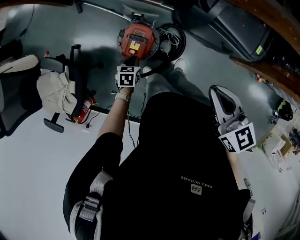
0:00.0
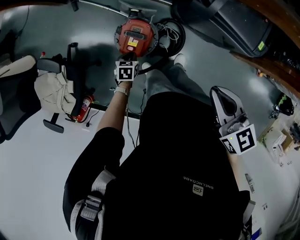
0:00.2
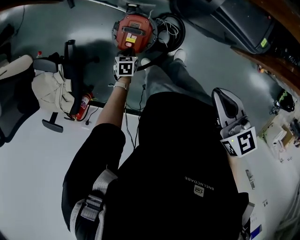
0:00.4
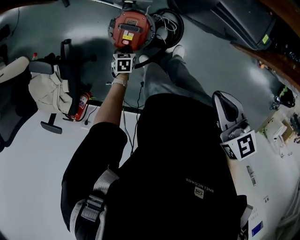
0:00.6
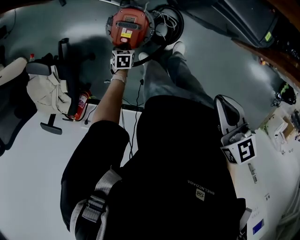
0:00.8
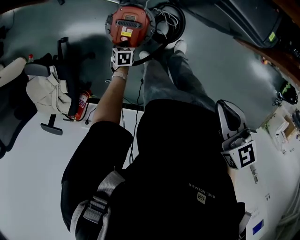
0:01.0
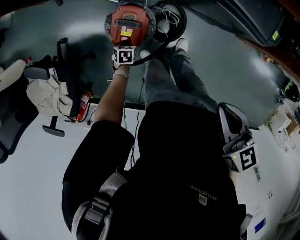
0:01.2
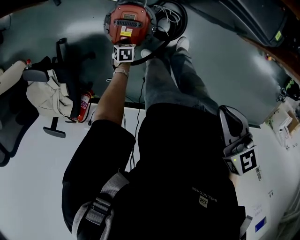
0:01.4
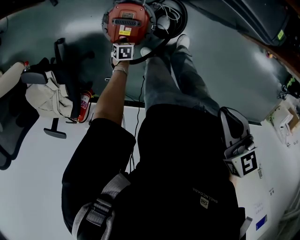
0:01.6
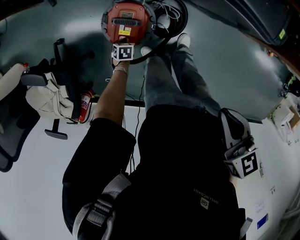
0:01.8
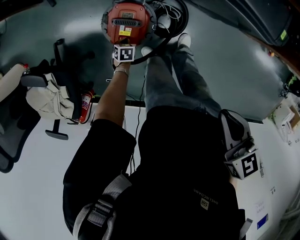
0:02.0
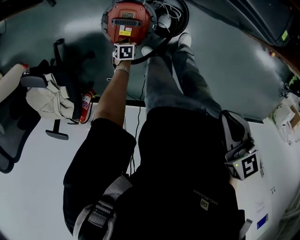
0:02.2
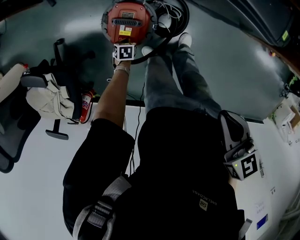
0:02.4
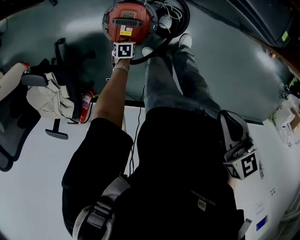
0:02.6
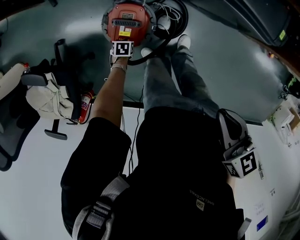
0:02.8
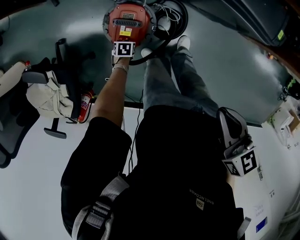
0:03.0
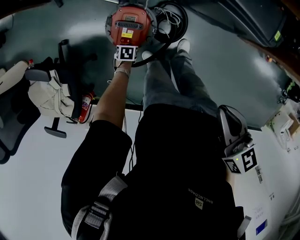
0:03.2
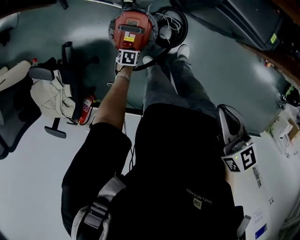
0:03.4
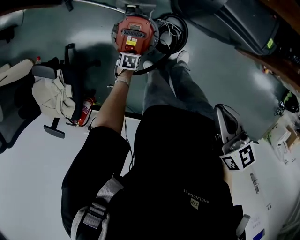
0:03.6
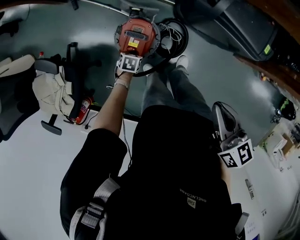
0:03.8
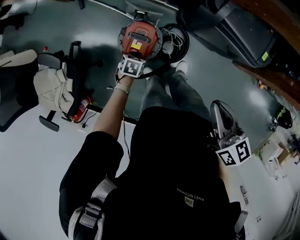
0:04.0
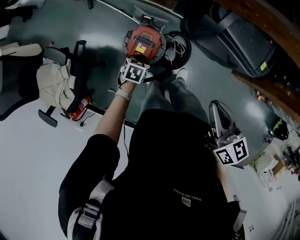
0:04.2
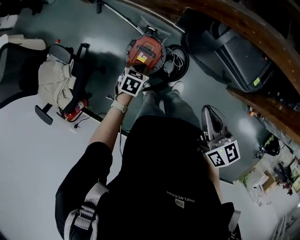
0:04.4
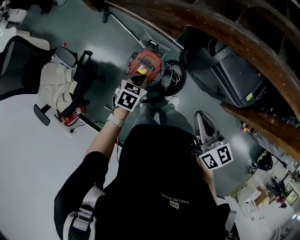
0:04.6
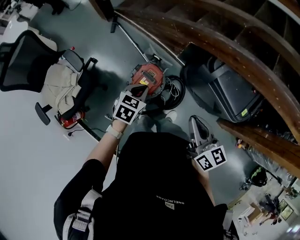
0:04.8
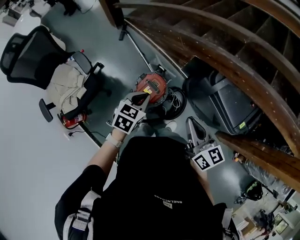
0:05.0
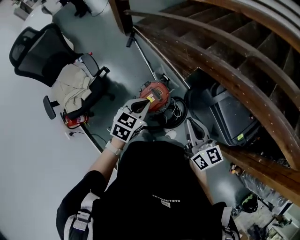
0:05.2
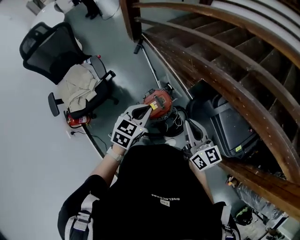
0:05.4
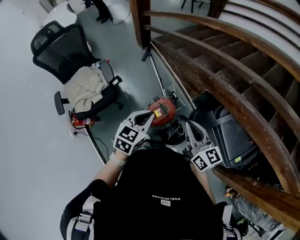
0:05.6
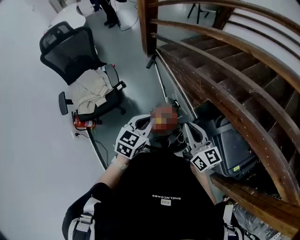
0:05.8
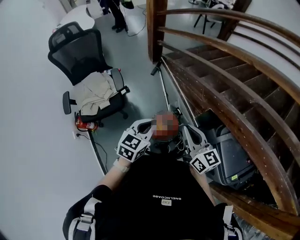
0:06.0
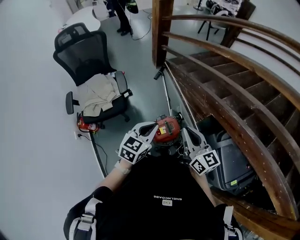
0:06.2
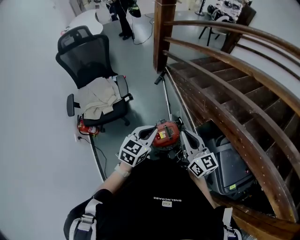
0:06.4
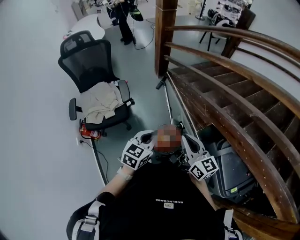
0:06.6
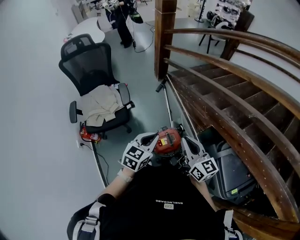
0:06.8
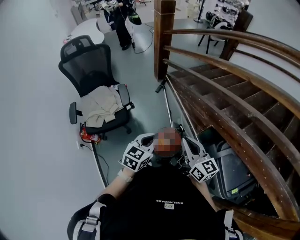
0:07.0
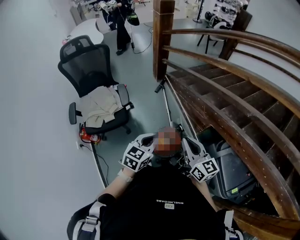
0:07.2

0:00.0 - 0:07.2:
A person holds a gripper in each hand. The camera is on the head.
0:00.0 - 0:01.4: The left gripper shifts approximately 25 cm downward, while the right gripper shifts approximately 10 cm downward.
0:01.4 - 0:02.8: The grippers move only a little.
0:02.8 - 0:04.4: The right gripper is displaced upward by about 10 cm, and rotates about 20 degrees. The left gripper travels upward by about 35 cm, and swivels some 20 degrees.
0:04.4 - 0:05.8: The right gripper changes place by roughly 20 cm, and turns by approximately 40 degrees; the left gripper travels upward by about 35 cm, and tilts its fingers roughly 30 degrees upward.
0:05.8 - 0:07.2: The grippers make only small movements.

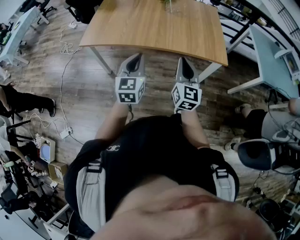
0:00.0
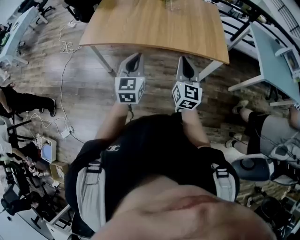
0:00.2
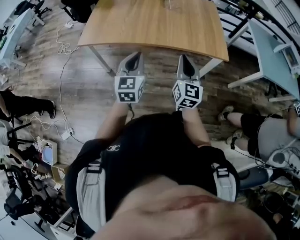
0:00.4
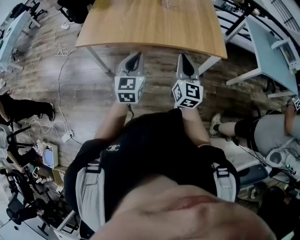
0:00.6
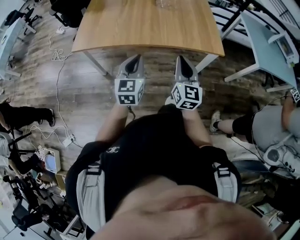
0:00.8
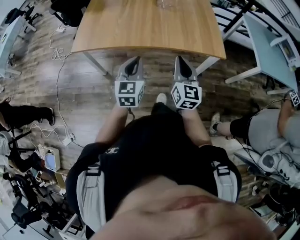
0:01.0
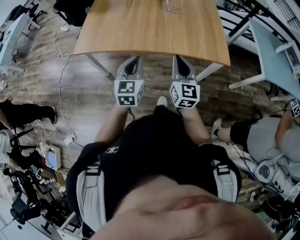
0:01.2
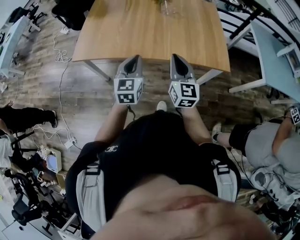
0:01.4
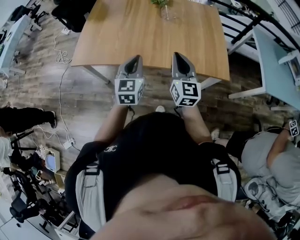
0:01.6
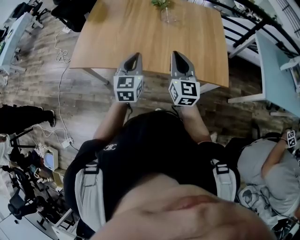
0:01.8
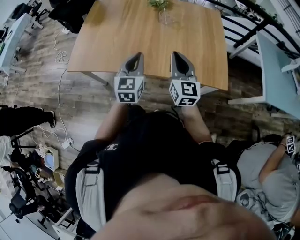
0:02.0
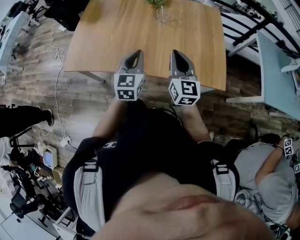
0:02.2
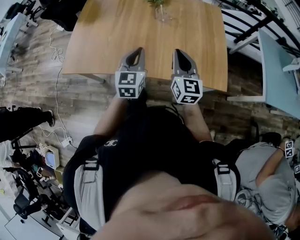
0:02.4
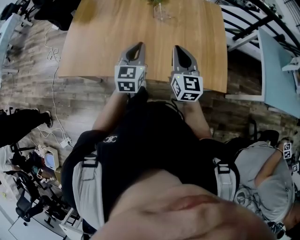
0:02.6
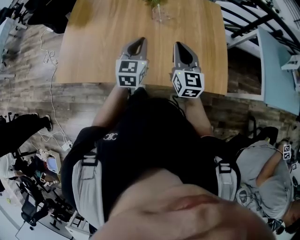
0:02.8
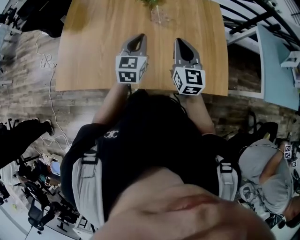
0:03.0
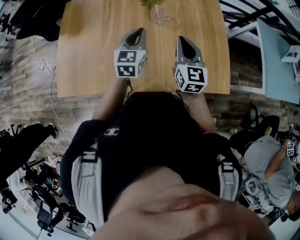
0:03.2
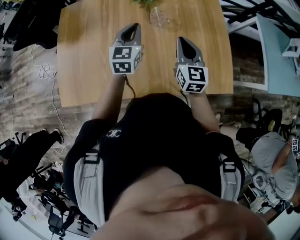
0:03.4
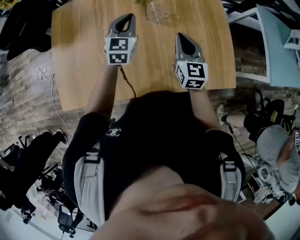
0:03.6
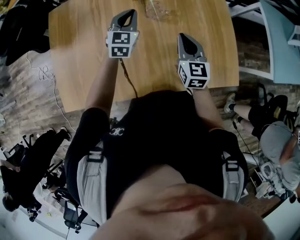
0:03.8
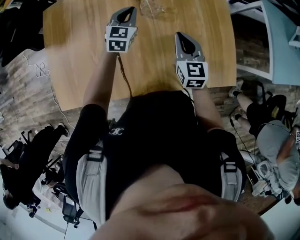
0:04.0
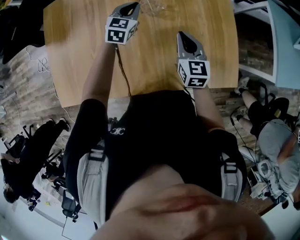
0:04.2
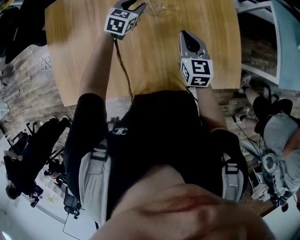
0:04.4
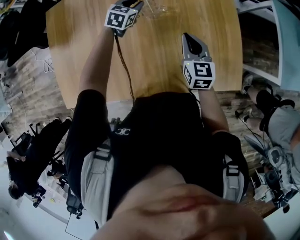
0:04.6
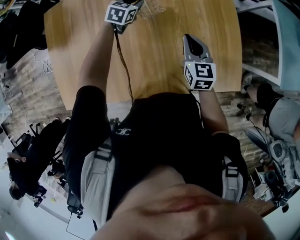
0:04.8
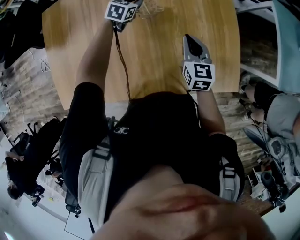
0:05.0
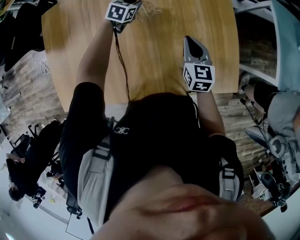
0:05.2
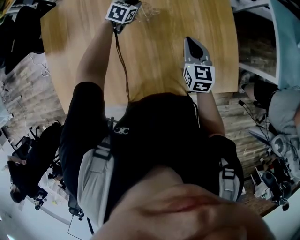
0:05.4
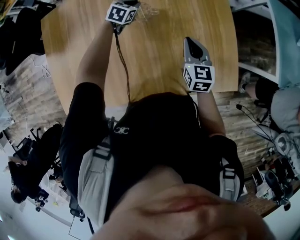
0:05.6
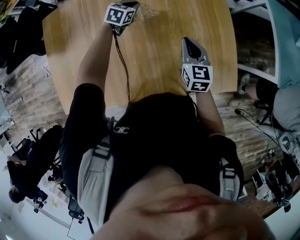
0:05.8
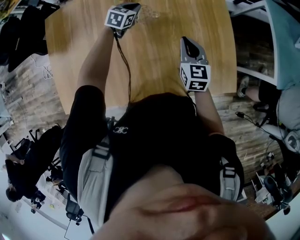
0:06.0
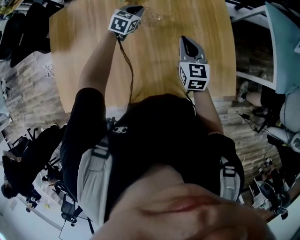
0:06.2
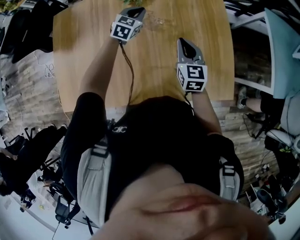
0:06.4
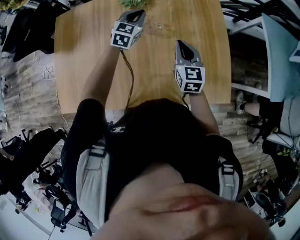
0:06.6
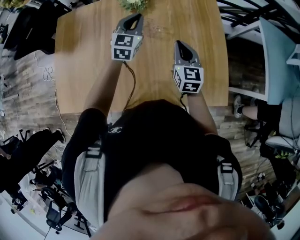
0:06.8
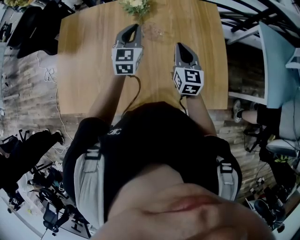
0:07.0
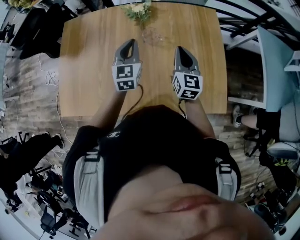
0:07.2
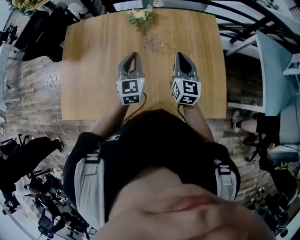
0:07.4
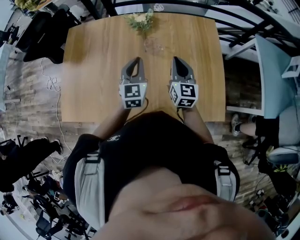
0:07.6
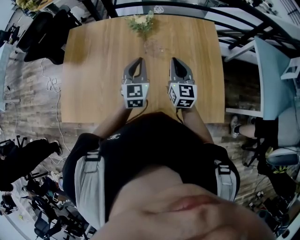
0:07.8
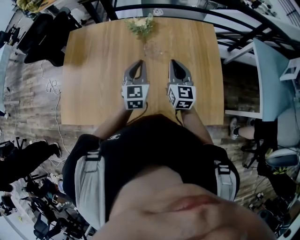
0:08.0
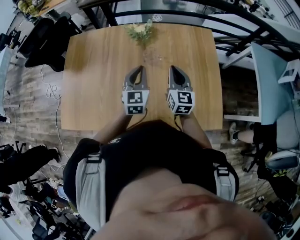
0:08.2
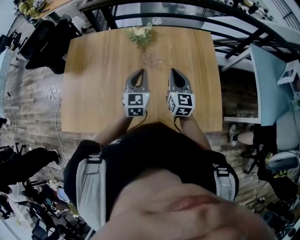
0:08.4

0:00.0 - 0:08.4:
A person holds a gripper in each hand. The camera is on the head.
0:00.0 - 0:01.4: The two grippers go approximately 15 cm forward.
0:01.4 - 0:02.8: The two grippers go some 30 cm forward.
0:02.8 - 0:04.2: The left gripper travels forward and downward by roughly 30 cm, and swivels roughly 20 degrees, while the right gripper moves forward and downward, roughly 20 cm.
0:04.2 - 0:05.6: The left gripper is displaced downward and forward by some 10 cm, rotates about 20 degrees, and opens, then closes once more; the right gripper heads to the right, covering approximately 5 cm.
0:05.6 - 0:07.0: The left gripper is displaced upward and backward by roughly 25 cm, and angles its fingers upward, by about 30 degrees. Meanwhile the right gripper moves upward, approximately 10 cm.
0:07.0 - 0:08.4: The left gripper travels backward by roughly 10 cm.

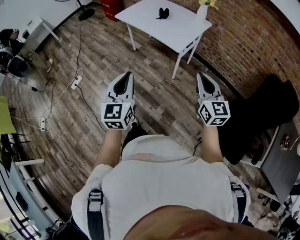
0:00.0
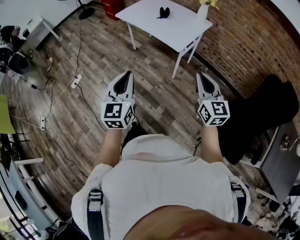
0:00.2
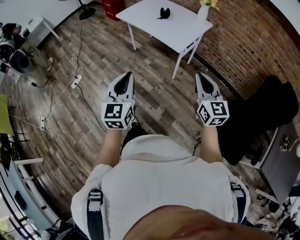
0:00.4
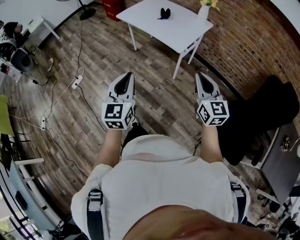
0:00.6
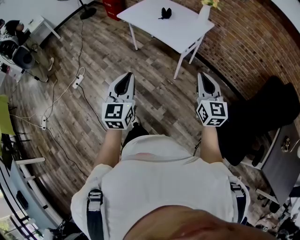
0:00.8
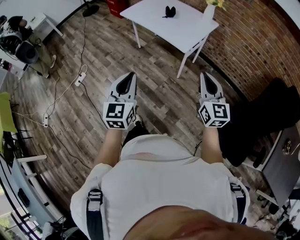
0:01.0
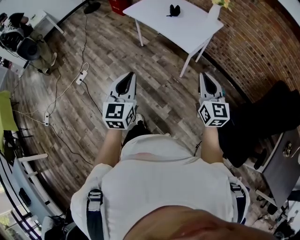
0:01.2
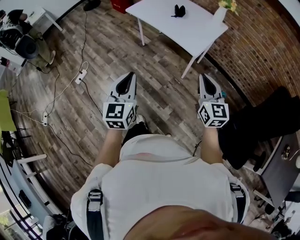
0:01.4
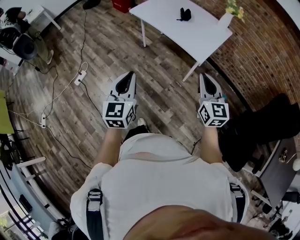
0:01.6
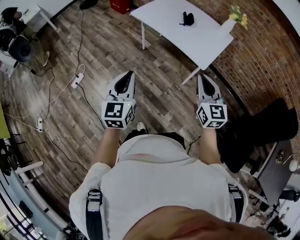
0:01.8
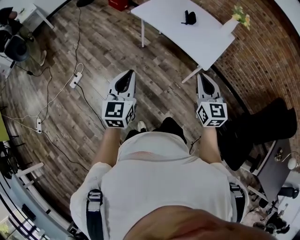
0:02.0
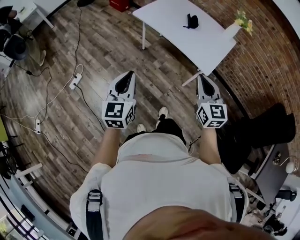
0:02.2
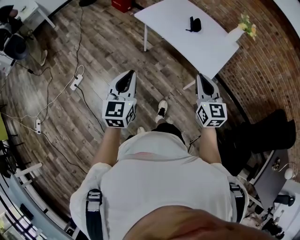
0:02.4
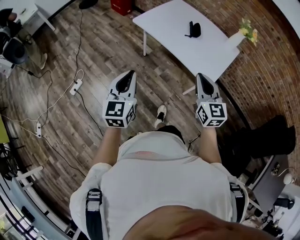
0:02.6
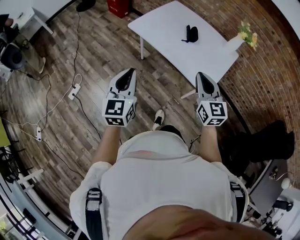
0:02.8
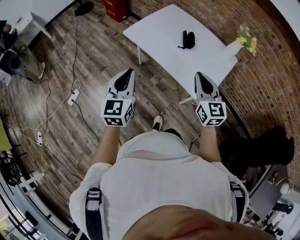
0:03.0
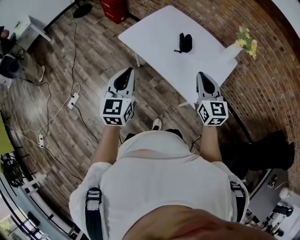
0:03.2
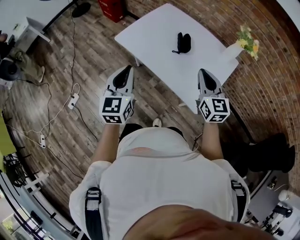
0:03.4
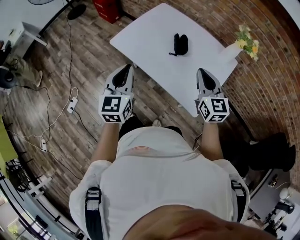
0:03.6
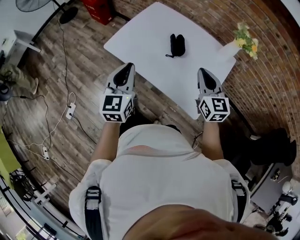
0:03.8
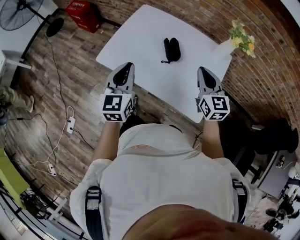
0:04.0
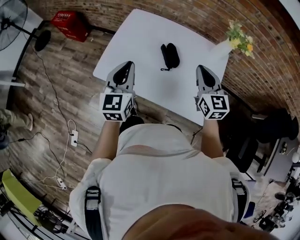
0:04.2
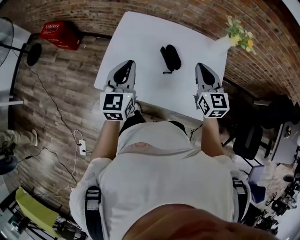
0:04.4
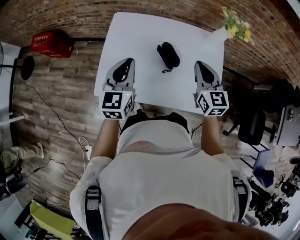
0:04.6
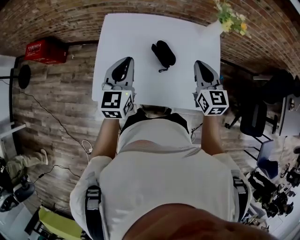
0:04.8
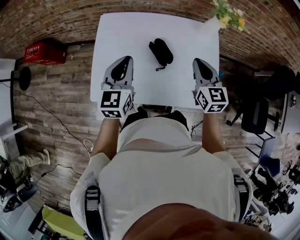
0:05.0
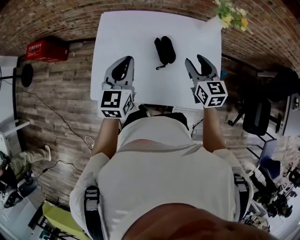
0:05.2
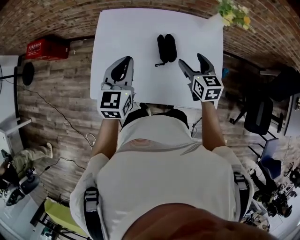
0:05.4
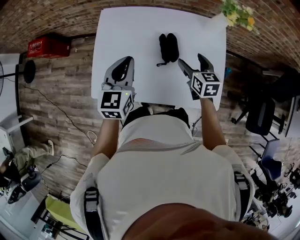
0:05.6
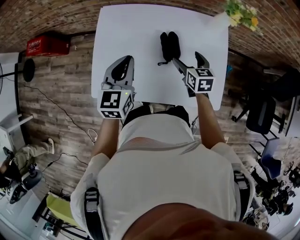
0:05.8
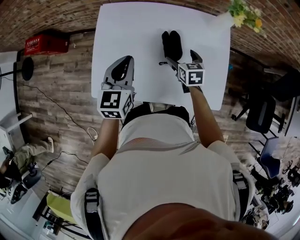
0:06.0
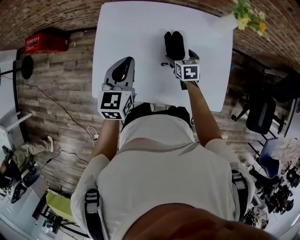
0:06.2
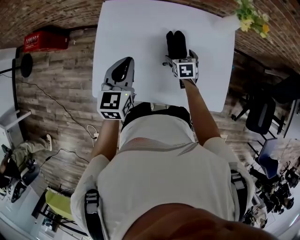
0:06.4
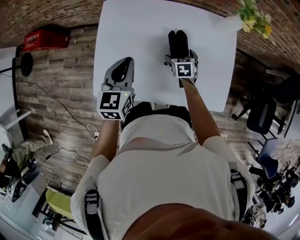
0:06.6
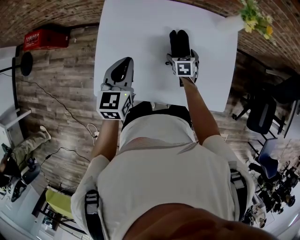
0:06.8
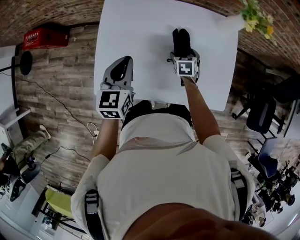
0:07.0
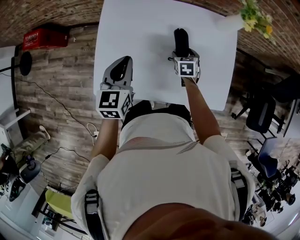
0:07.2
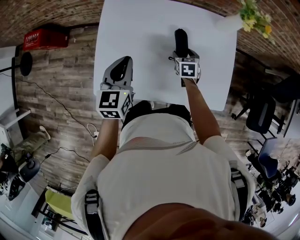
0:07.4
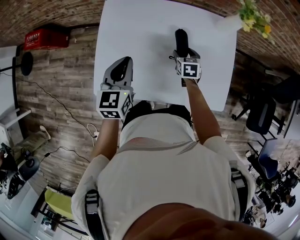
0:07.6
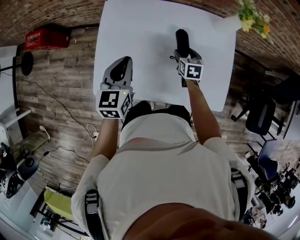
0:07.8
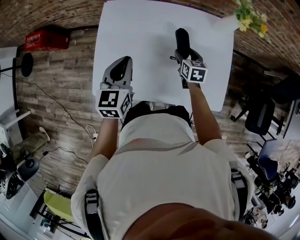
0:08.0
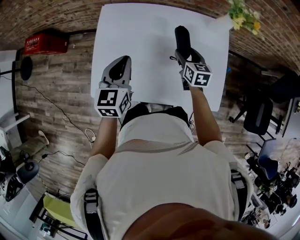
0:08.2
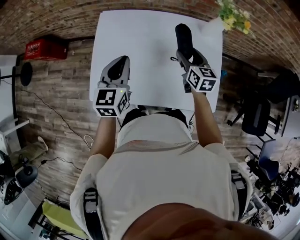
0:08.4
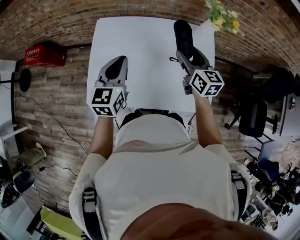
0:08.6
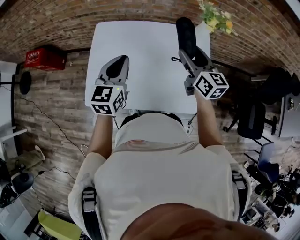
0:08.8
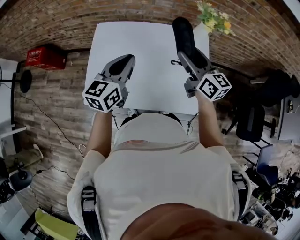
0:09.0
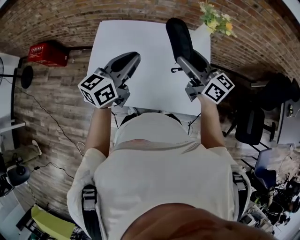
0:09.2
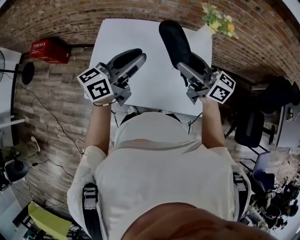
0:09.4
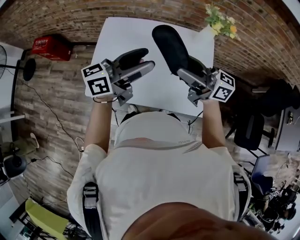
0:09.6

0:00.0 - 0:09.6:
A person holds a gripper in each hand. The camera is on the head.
0:00.0 - 0:01.6: The left gripper moves to the left and forward, about 20 cm; the right gripper shifts approximately 20 cm forward and to the left.
0:01.6 - 0:03.2: The two grippers go approximately 35 cm forward.
0:03.2 - 0:04.8: The right gripper changes place by about 25 cm, and turns by approximately 40 degrees; the left gripper ends up roughly 40 cm from where it was, and turns by approximately 40 degrees.
0:04.8 - 0:06.4: The left gripper moves downward, some 5 cm; the right gripper shifts about 30 cm downward, tips its fingers downward by roughly 40 degrees, and opens.
0:06.4 - 0:08.0: The right gripper heads upward, covering approximately 5 cm, and closes up.
0:08.0 - 0:09.6: The right gripper goes some 35 cm upward and backward, and tilts its fingers approximately 50 degrees upward. Meanwhile the left gripper is displaced upward and to the right by approximately 20 cm, points its fingers roughly 30 degrees further upward, and opens its fingers.
